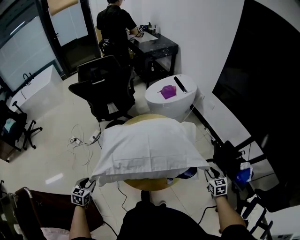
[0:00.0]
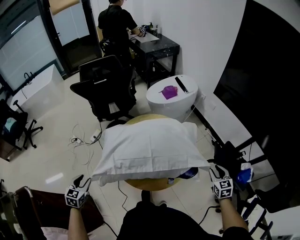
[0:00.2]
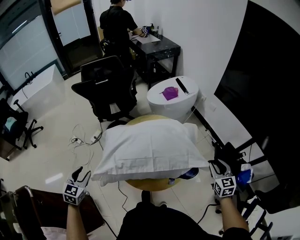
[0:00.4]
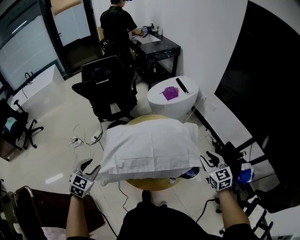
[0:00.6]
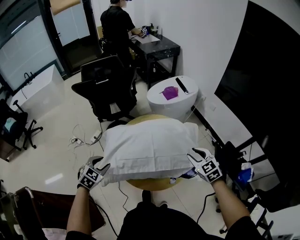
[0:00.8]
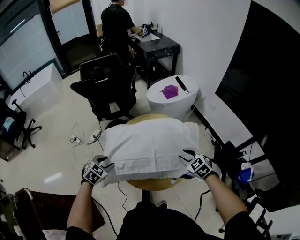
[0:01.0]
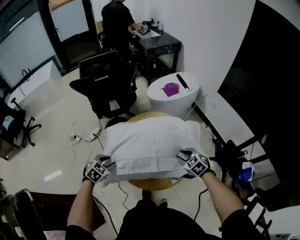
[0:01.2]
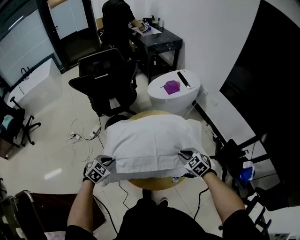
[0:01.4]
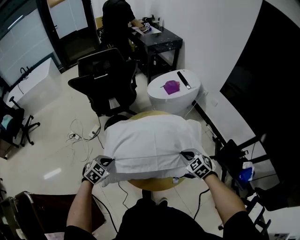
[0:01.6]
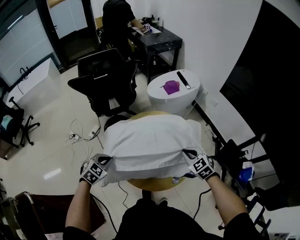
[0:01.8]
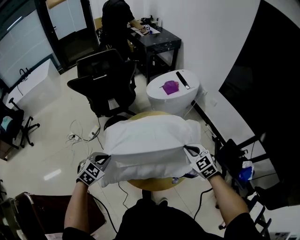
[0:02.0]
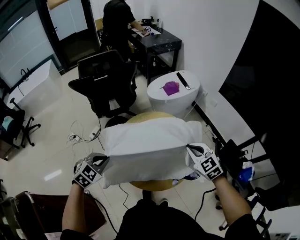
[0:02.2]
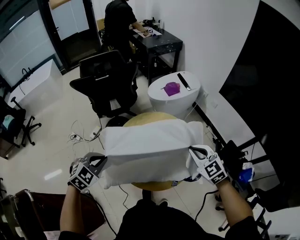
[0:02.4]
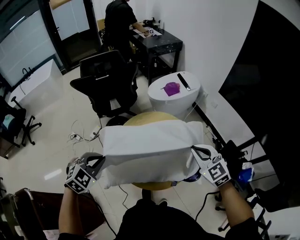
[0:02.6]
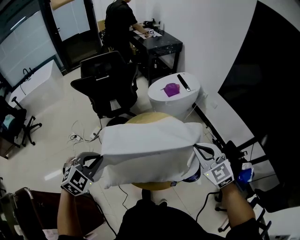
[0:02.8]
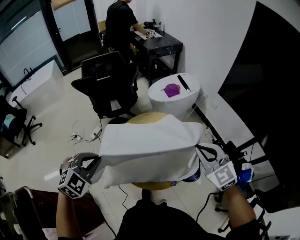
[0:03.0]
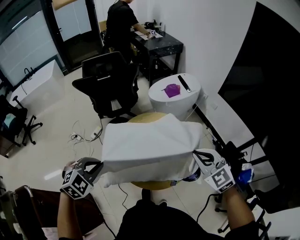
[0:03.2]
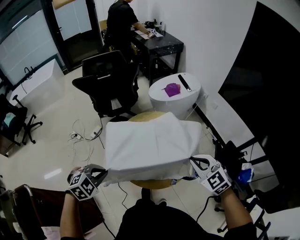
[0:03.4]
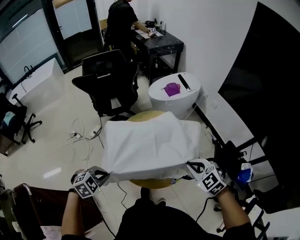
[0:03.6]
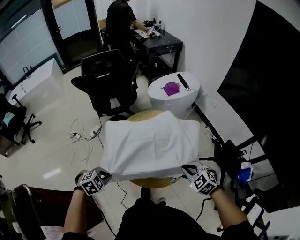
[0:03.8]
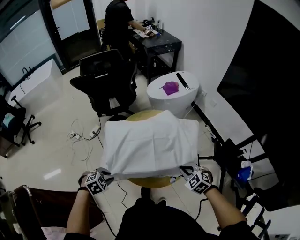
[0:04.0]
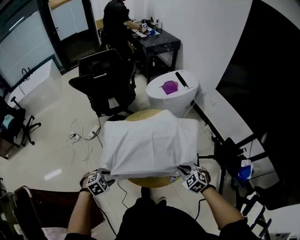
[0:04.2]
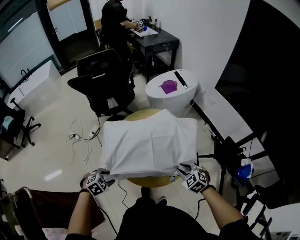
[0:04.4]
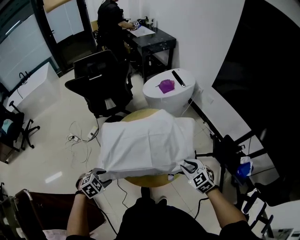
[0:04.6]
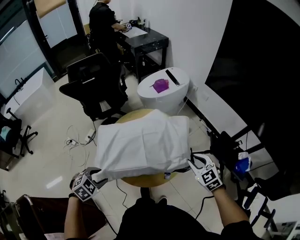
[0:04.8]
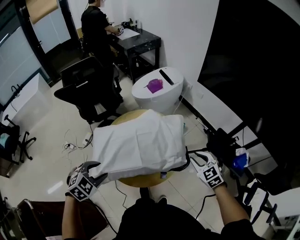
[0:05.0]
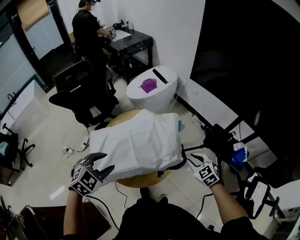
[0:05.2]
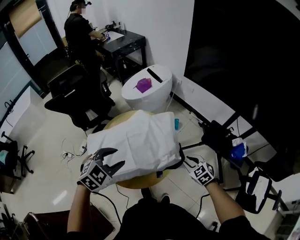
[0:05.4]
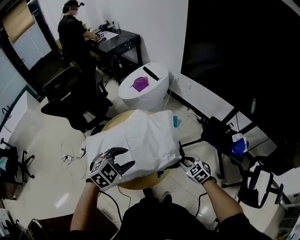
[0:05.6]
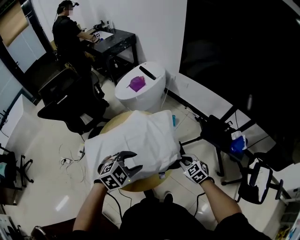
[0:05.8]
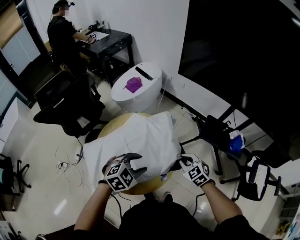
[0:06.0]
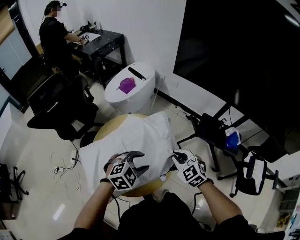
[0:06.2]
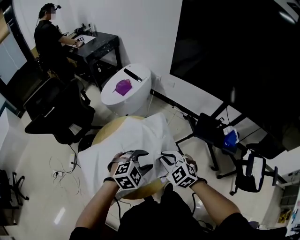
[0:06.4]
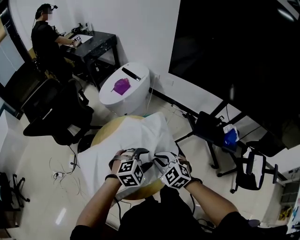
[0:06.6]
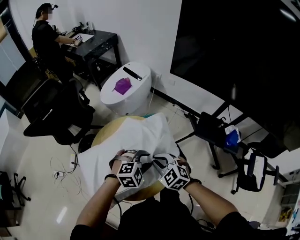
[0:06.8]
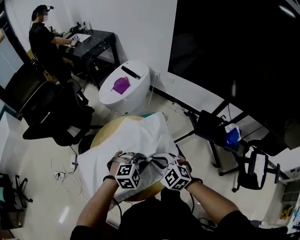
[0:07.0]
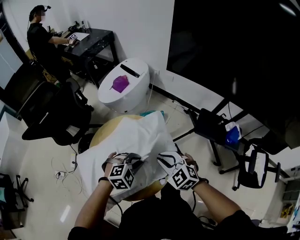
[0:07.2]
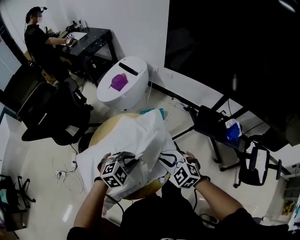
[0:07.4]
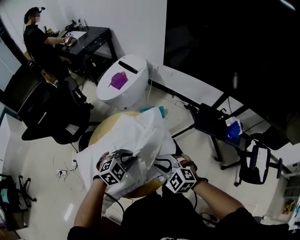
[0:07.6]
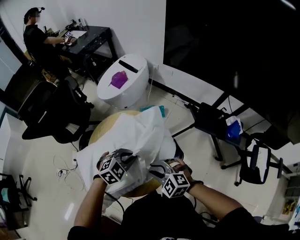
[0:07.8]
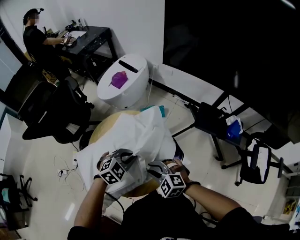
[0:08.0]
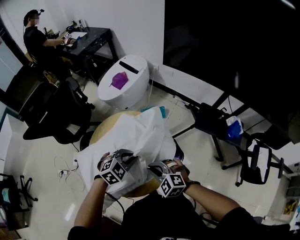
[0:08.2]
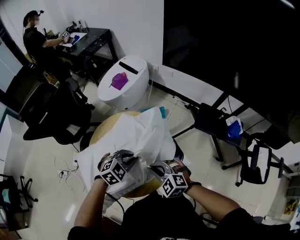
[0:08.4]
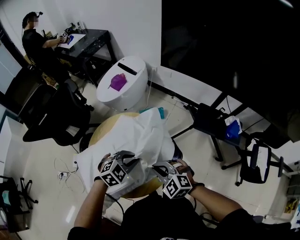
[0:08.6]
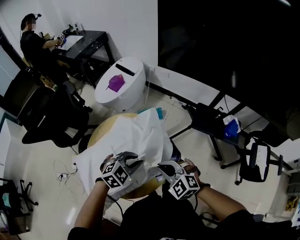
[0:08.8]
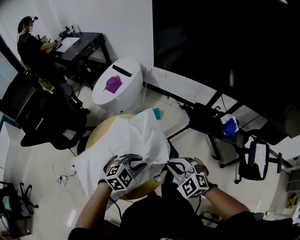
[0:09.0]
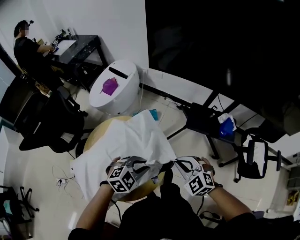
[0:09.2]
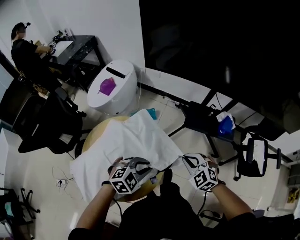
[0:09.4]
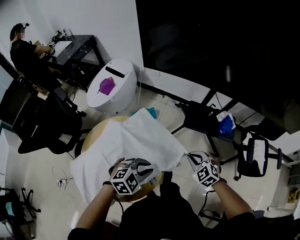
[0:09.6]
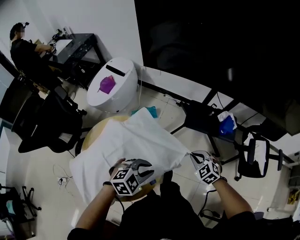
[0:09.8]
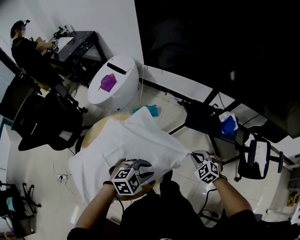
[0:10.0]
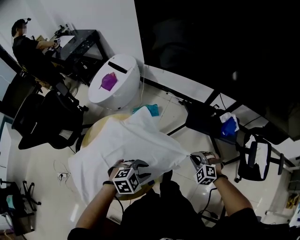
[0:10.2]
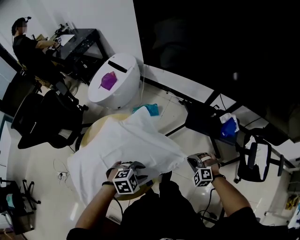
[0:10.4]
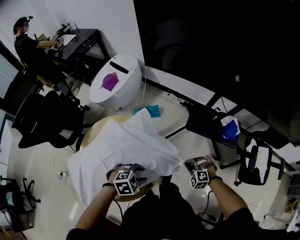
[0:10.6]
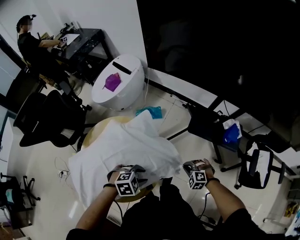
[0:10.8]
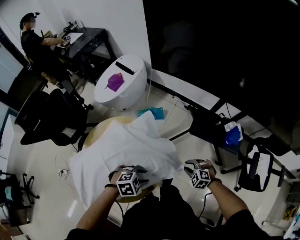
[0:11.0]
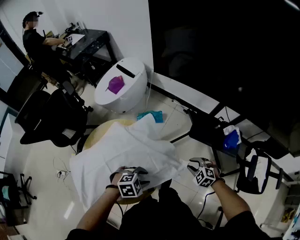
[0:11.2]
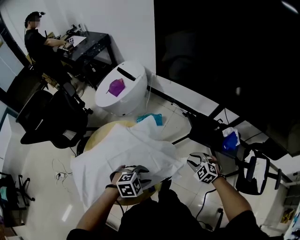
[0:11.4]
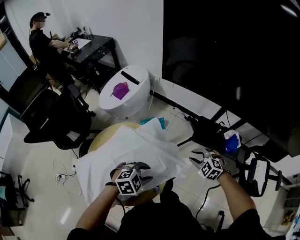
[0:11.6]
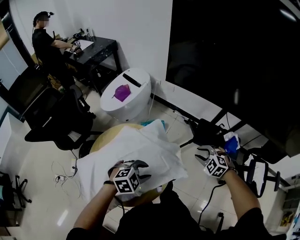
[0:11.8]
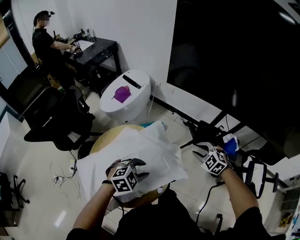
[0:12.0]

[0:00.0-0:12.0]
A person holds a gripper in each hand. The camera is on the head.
0:00.0 to 0:01.6: The left gripper heads forward and to the right, covering roughly 15 cm, moves some 15 cm upward and comes back, turns by about 30 degrees, and closes up. Meanwhile the right gripper shifts about 25 cm to the left and forward, turns by some 40 degrees, and closes.
0:01.6 to 0:03.0: The two grippers go some 25 cm upward. The right gripper turns by roughly 30 degrees; the left gripper rotates approximately 20 degrees.
0:03.0 to 0:04.4: The grippers both shift downward by about 25 cm. The right gripper swivels roughly 30 degrees, and opens up. Meanwhile the left gripper rotates some 30 degrees, and opens up.
0:04.4 to 0:06.0: The right gripper swings up and down, approximately 10 cm each way, with 2 reversals, and turns by about 30 degrees. The left gripper moves roughly 30 cm, and rotates some 40 degrees.
0:06.0 to 0:07.6: The left gripper travels forward and downward by approximately 10 cm, and closes; the right gripper moves to the left, roughly 10 cm, and opens.
0:07.6 to 0:09.0: Both grippers travel together to the right, roughly 10 cm. The right gripper closes up.
0:09.0 to 0:10.4: The left gripper heads downward and to the right, covering approximately 10 cm, swivels roughly 20 degrees, and opens; the right gripper goes roughly 25 cm downward, to the right and forward, and changes its angle by approximately 30 degrees.
0:10.4 to 0:12.0: The left gripper shifts by about 10 cm, while the right gripper travels upward by roughly 15 cm, and opens its fingers.

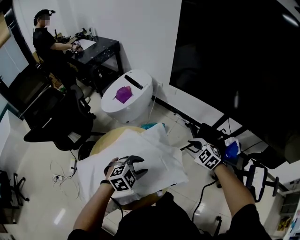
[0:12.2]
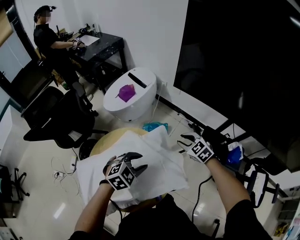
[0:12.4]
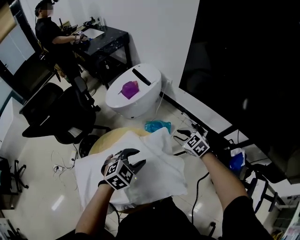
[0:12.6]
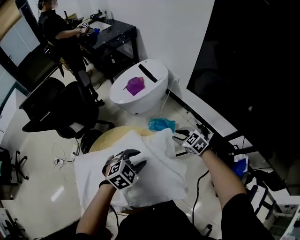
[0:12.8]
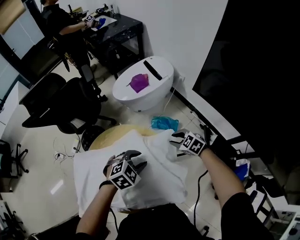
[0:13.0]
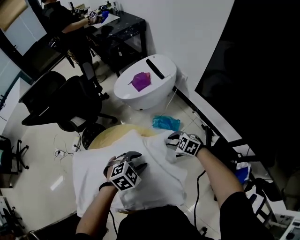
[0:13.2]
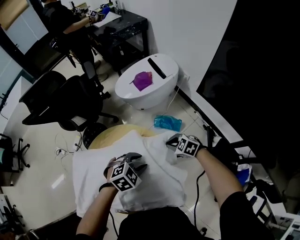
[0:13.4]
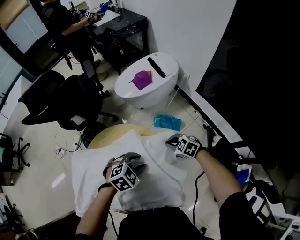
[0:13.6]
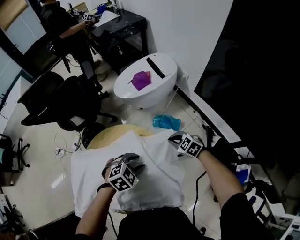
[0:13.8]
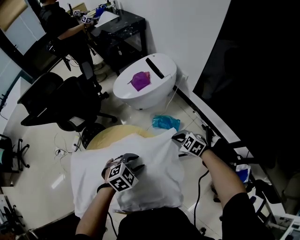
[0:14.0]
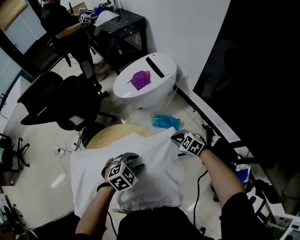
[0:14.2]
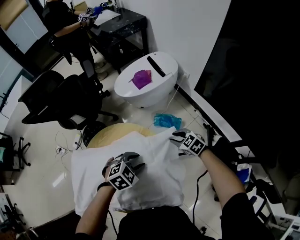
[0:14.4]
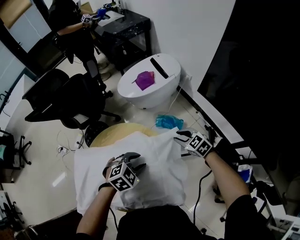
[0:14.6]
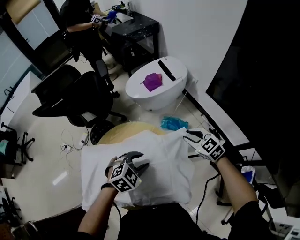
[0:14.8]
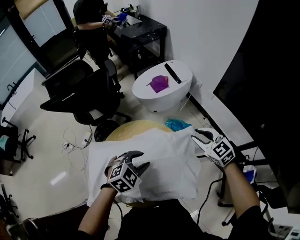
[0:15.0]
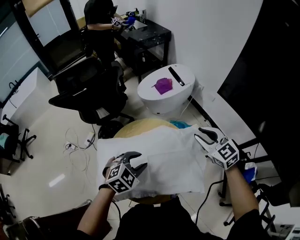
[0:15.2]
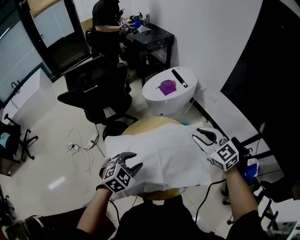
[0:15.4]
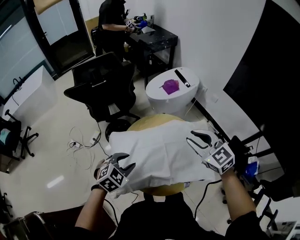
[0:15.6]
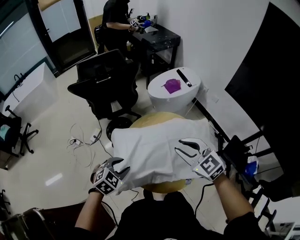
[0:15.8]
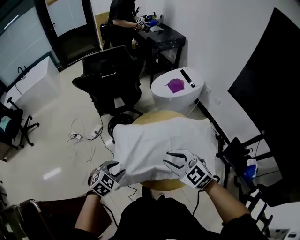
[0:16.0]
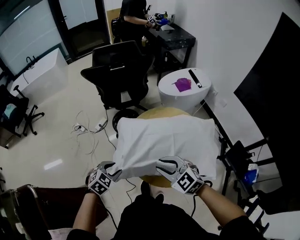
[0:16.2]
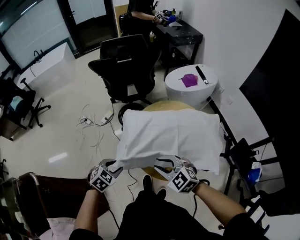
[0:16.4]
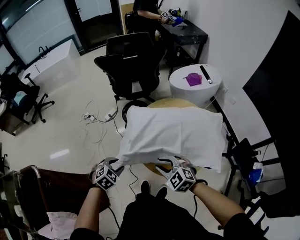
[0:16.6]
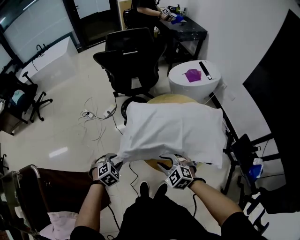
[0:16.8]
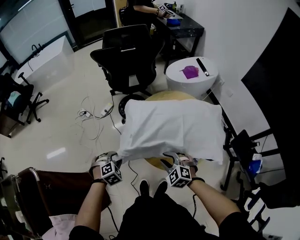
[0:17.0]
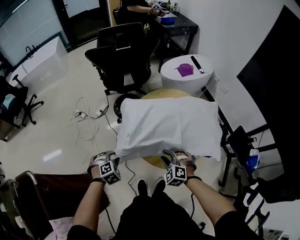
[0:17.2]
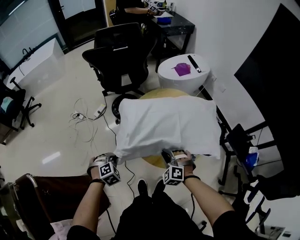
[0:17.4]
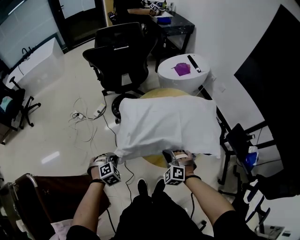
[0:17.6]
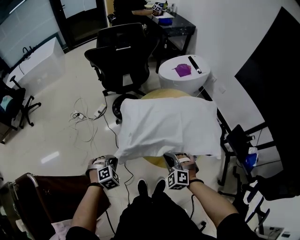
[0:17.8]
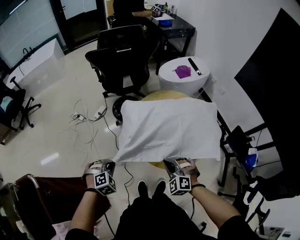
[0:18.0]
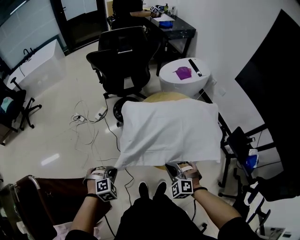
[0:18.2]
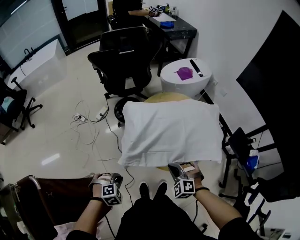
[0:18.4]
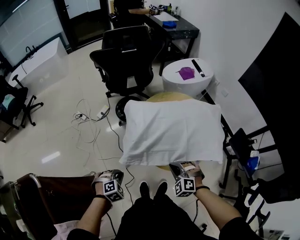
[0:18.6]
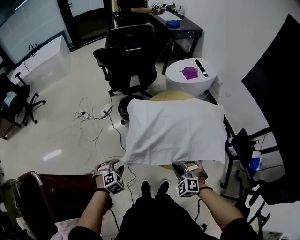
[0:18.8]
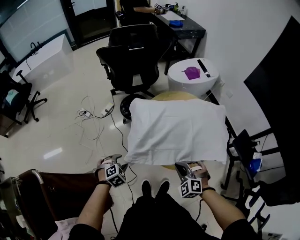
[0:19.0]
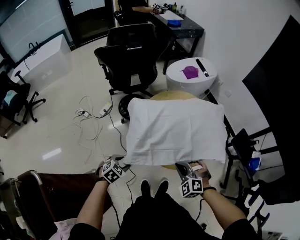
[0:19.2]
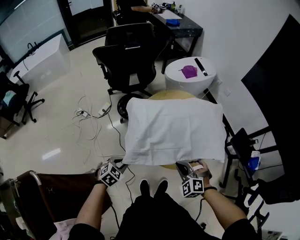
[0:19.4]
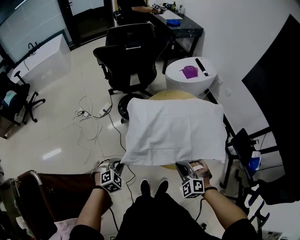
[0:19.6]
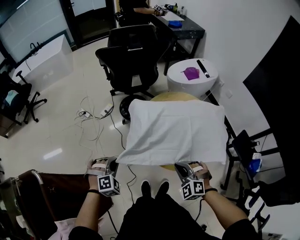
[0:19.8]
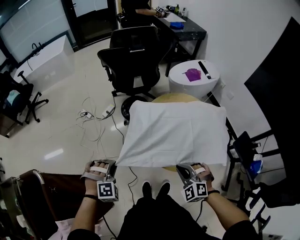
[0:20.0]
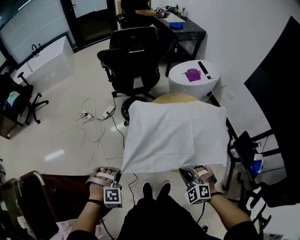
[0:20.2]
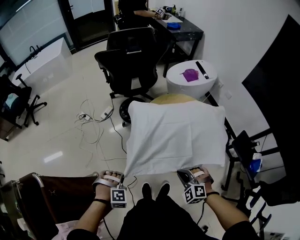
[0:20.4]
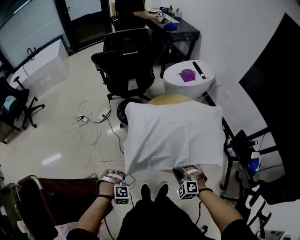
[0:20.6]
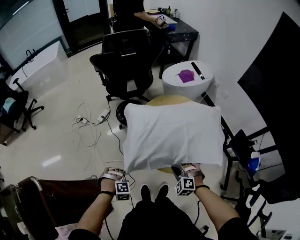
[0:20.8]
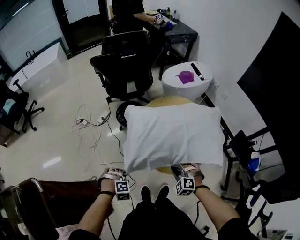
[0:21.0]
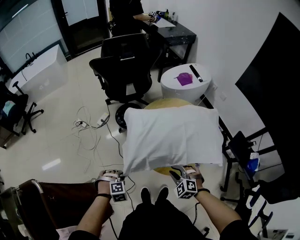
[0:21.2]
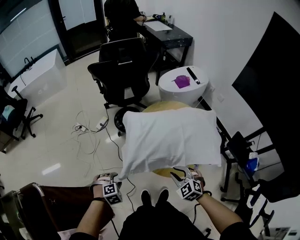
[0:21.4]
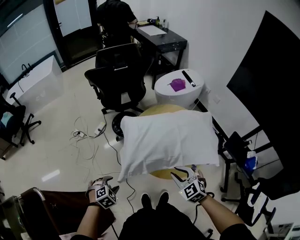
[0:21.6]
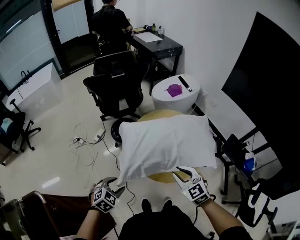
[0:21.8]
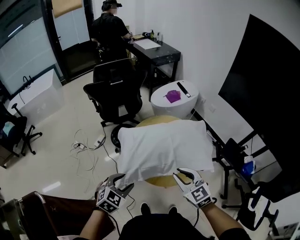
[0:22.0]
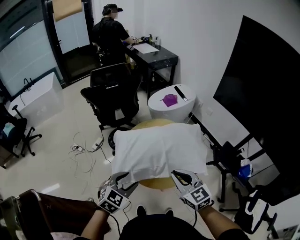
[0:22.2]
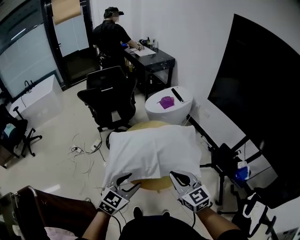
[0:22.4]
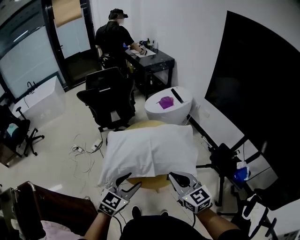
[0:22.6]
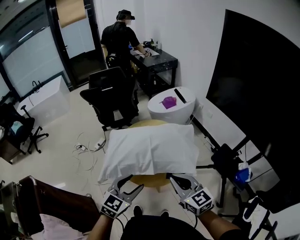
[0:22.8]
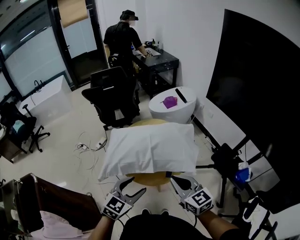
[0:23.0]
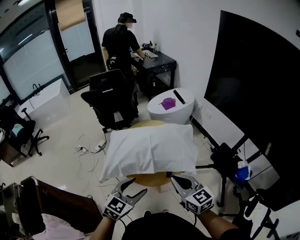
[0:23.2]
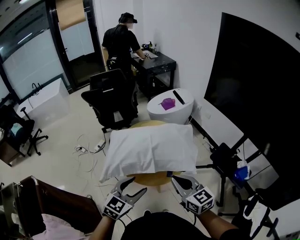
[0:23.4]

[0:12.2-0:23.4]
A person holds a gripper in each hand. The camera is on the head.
0:12.2 to 0:13.8: The right gripper shifts by approximately 25 cm, swivels about 30 degrees, and closes its fingers; the left gripper shifts by approximately 15 cm, and rotates roughly 30 degrees.
0:13.8 to 0:15.4: The right gripper goes some 30 cm upward, to the left and backward, swivels roughly 30 degrees, and opens its fingers, while the left gripper goes some 25 cm to the left, backward and upward.
0:15.4 to 0:17.0: The right gripper moves roughly 40 cm, and turns by approximately 40 degrees, while the left gripper ends up roughly 35 cm from where it was, and swivels some 30 degrees.
0:17.0 to 0:18.6: The right gripper closes up, while the left gripper heads backward, covering roughly 10 cm, and closes up.
0:18.6 to 0:20.2: Both grippers move upward, approximately 10 cm. The left gripper turns by some 30 degrees, and opens and closes again.
0:20.2 to 0:21.8: The left gripper reaches approximately 15 cm downward, then returns, changes its angle by approximately 40 degrees, and opens its fingers, while the right gripper travels upward by about 10 cm, changes its angle by approximately 40 degrees, and opens up.
0:21.8 to 0:23.4: The left gripper moves to the right and upward, approximately 30 cm, and tips its fingers upward by approximately 30 degrees, while the right gripper shifts some 20 cm to the right, upward and backward, swivels about 30 degrees, and closes up.
